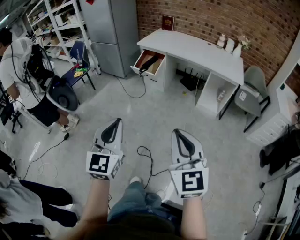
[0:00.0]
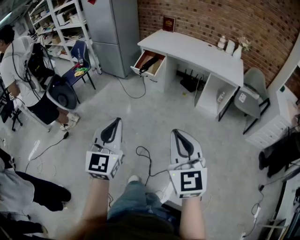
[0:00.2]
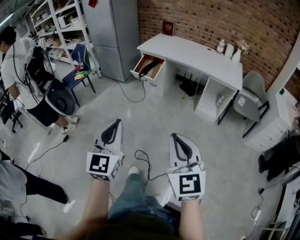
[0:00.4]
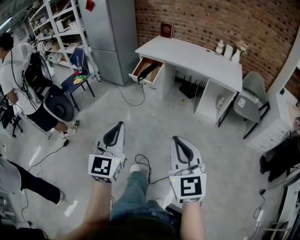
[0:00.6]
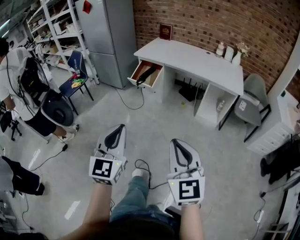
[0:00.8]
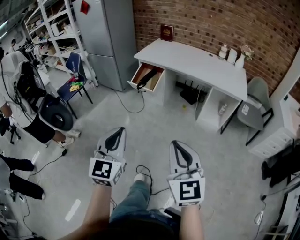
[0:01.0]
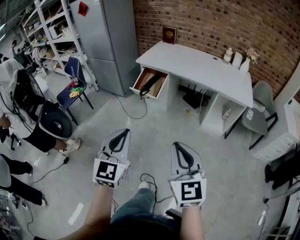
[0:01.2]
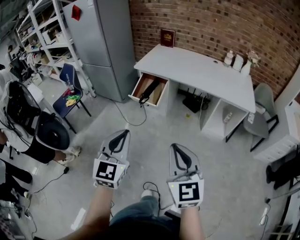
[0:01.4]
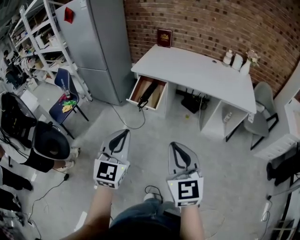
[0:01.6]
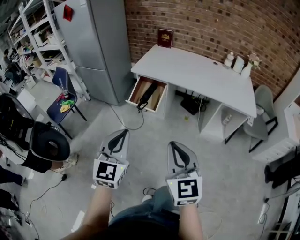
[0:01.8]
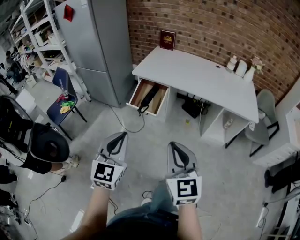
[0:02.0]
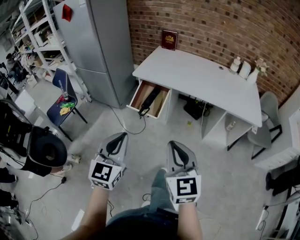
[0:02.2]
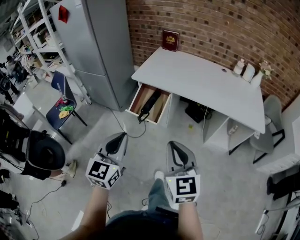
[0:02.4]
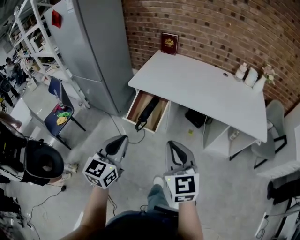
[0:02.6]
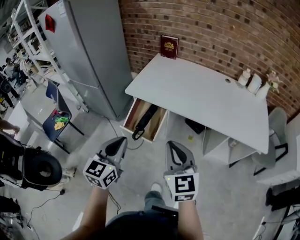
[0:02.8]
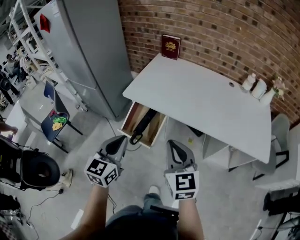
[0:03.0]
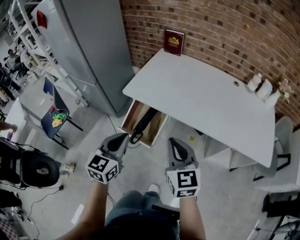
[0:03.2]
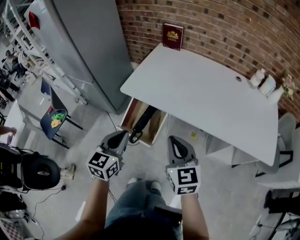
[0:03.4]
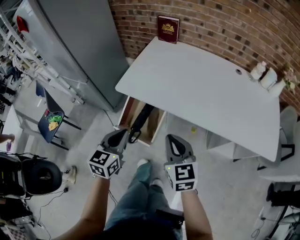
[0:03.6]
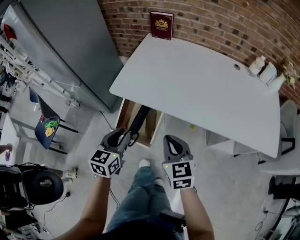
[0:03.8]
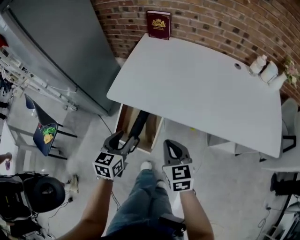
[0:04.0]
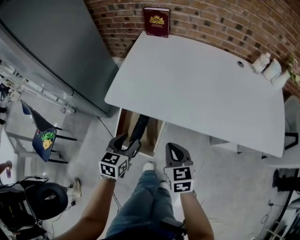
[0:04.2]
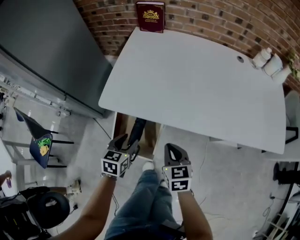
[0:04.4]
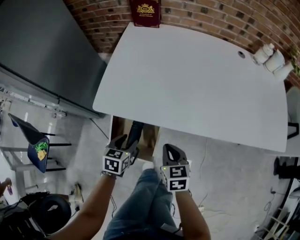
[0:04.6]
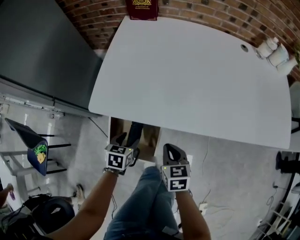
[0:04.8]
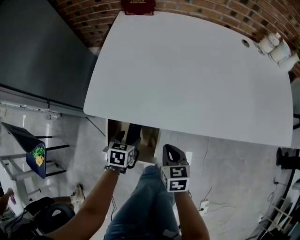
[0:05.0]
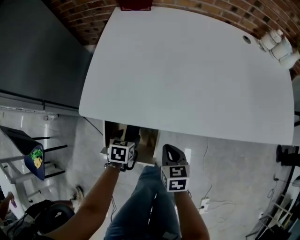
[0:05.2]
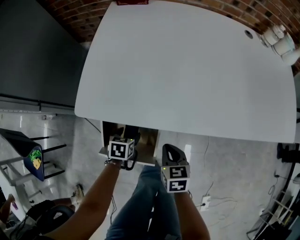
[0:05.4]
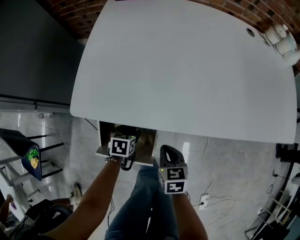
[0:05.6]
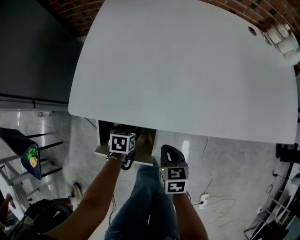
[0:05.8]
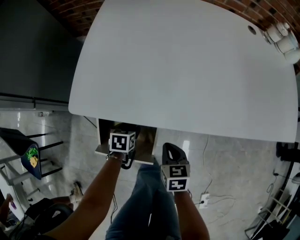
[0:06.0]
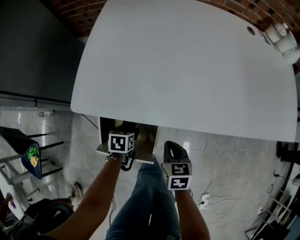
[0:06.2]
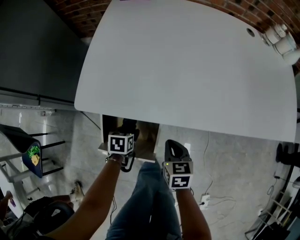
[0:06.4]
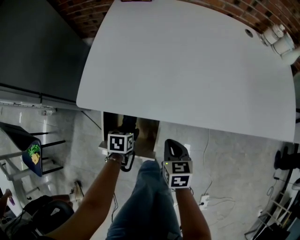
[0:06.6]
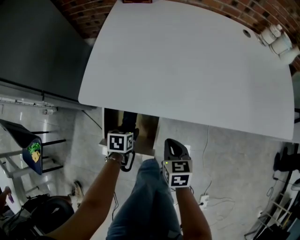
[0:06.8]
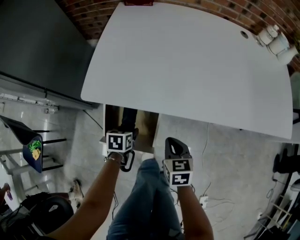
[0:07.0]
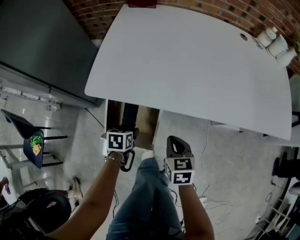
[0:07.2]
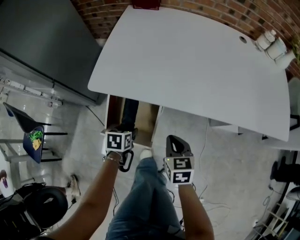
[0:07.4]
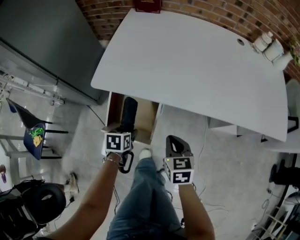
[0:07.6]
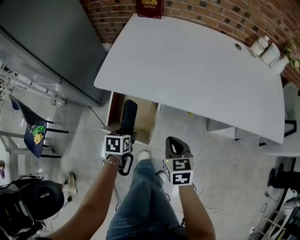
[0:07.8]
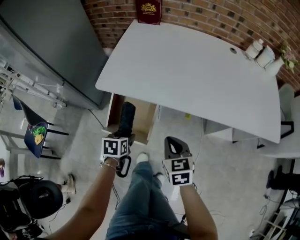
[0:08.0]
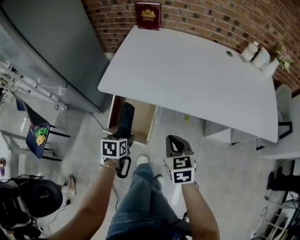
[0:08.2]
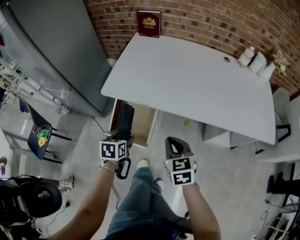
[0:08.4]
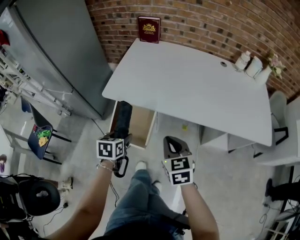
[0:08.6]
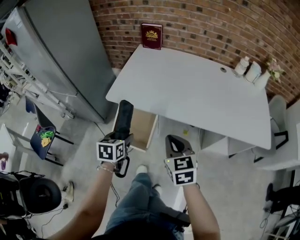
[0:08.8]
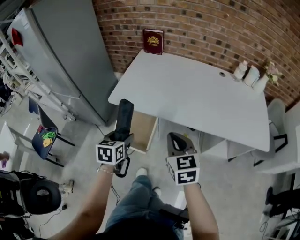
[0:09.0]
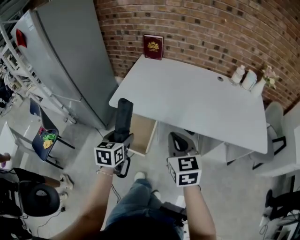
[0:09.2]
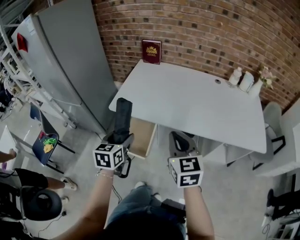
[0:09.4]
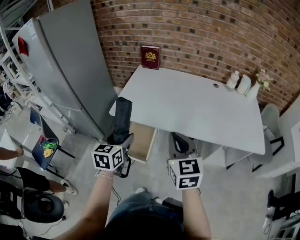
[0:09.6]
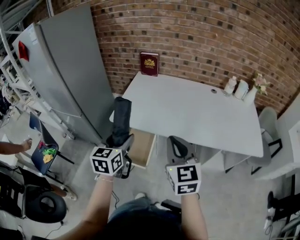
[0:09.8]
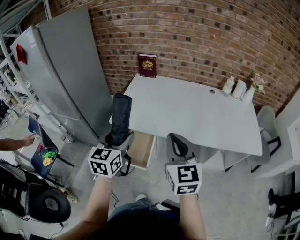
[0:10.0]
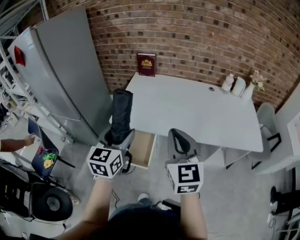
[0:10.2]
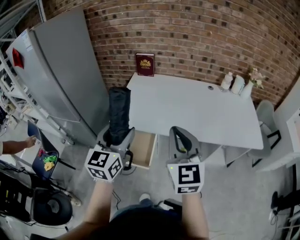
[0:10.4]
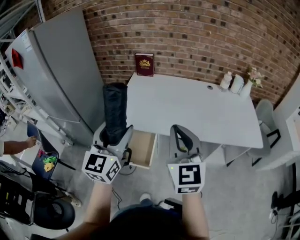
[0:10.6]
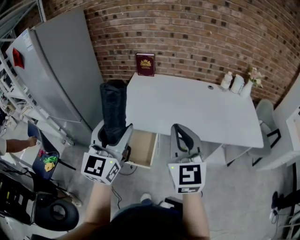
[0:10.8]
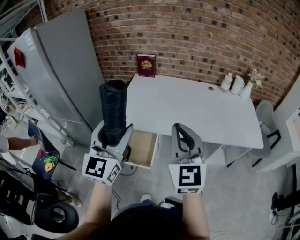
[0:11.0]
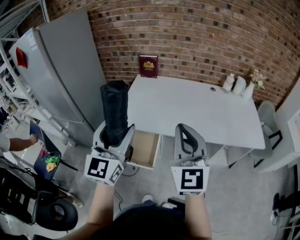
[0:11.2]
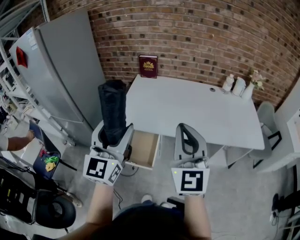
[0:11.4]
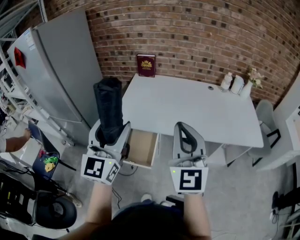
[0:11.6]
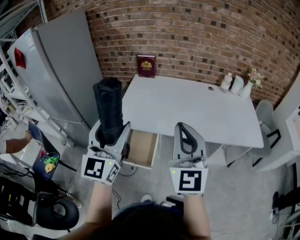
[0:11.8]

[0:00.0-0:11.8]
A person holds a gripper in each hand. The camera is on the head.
0:00.0 to 0:01.4: The two grippers go roughly 30 cm forward.
0:01.4 to 0:03.0: The two grippers travel together, forward, about 50 cm.
0:03.0 to 0:04.4: Both grippers travel together downward and forward, some 35 cm. The left gripper swivels some 30 degrees, and opens its fingers, while the right gripper rotates about 30 degrees.
0:04.4 to 0:06.0: Both grippers move downward, roughly 20 cm. The left gripper turns by approximately 30 degrees.
0:06.0 to 0:07.4: The left gripper travels upward and backward by some 15 cm, while the right gripper shifts roughly 10 cm upward.
0:07.4 to 0:08.8: Both grippers move upward, about 20 cm. The right gripper rotates roughly 20 degrees. Meanwhile the left gripper changes its angle by some 20 degrees.
0:08.8 to 0:10.4: The two grippers go roughly 25 cm upward. The right gripper changes its angle by roughly 30 degrees, while the left gripper angles its fingers upward, by about 40 degrees.
0:10.4 to 0:11.8: The left gripper shifts roughly 5 cm upward.

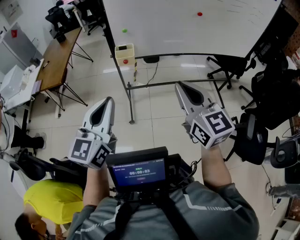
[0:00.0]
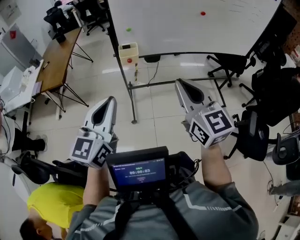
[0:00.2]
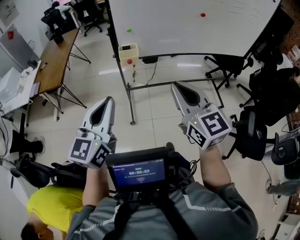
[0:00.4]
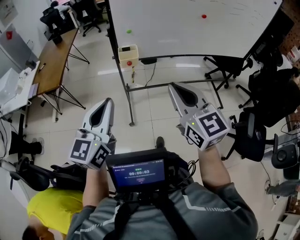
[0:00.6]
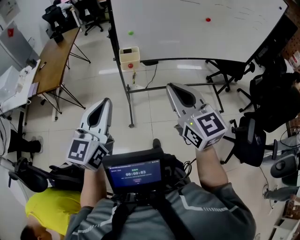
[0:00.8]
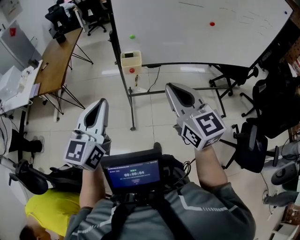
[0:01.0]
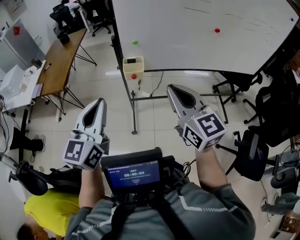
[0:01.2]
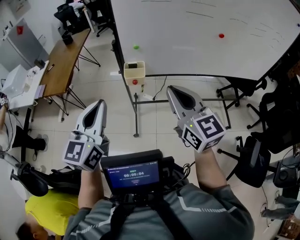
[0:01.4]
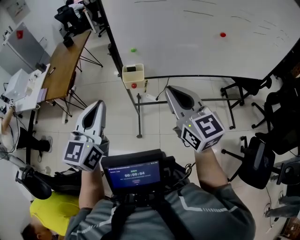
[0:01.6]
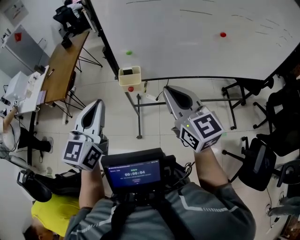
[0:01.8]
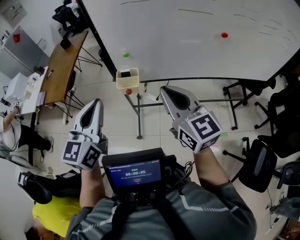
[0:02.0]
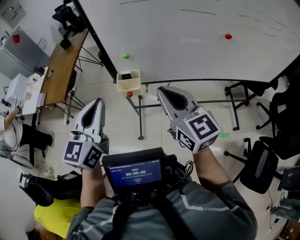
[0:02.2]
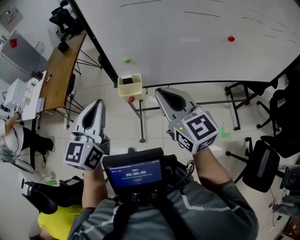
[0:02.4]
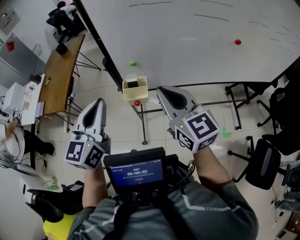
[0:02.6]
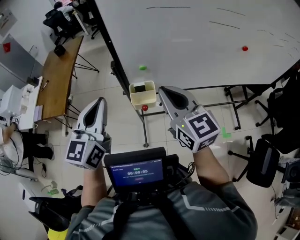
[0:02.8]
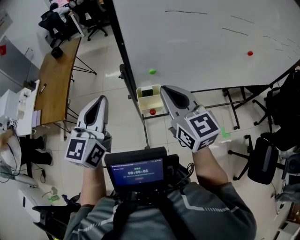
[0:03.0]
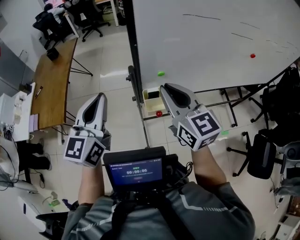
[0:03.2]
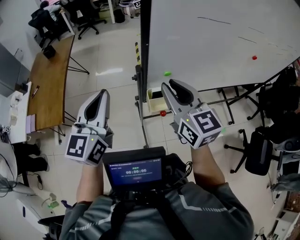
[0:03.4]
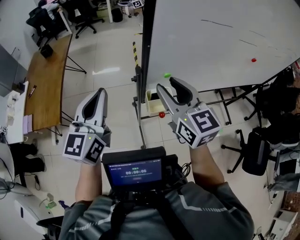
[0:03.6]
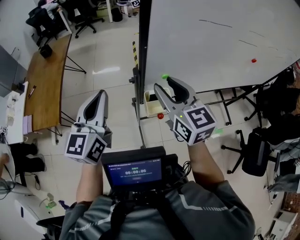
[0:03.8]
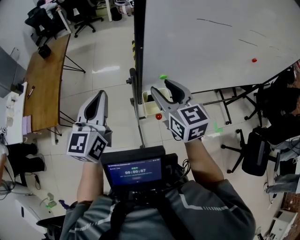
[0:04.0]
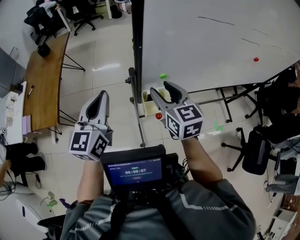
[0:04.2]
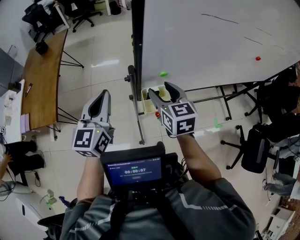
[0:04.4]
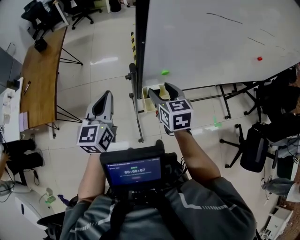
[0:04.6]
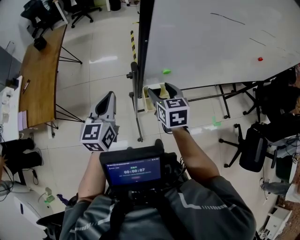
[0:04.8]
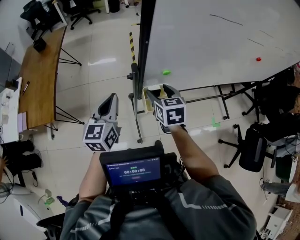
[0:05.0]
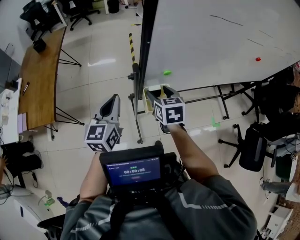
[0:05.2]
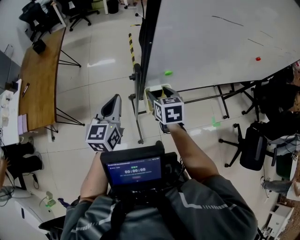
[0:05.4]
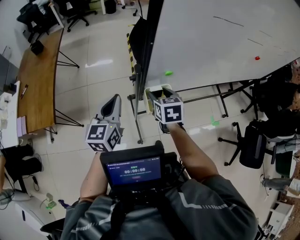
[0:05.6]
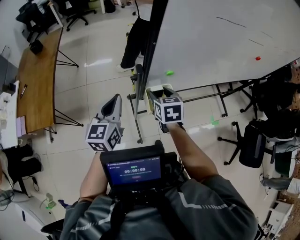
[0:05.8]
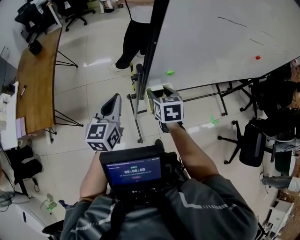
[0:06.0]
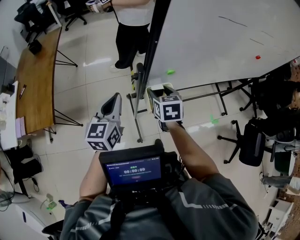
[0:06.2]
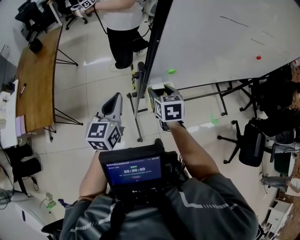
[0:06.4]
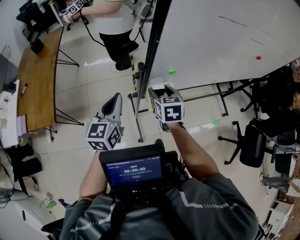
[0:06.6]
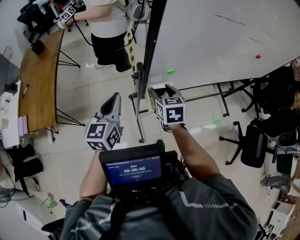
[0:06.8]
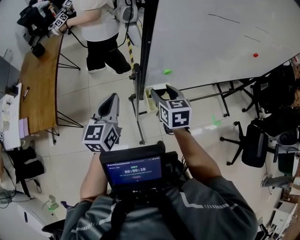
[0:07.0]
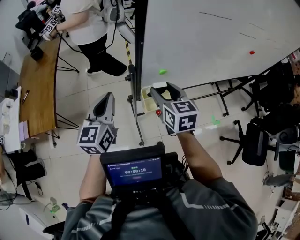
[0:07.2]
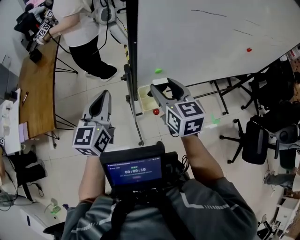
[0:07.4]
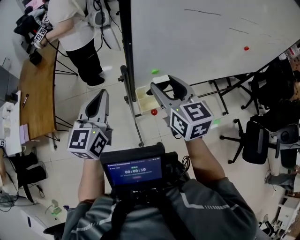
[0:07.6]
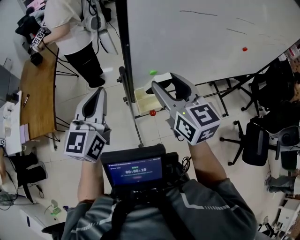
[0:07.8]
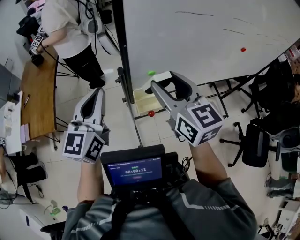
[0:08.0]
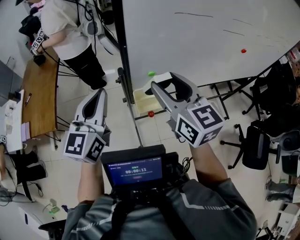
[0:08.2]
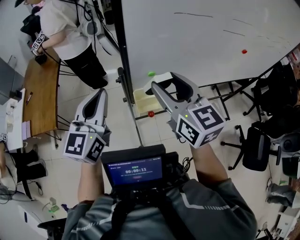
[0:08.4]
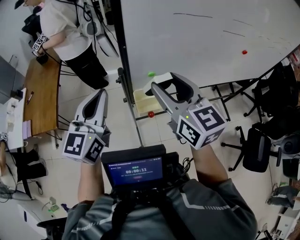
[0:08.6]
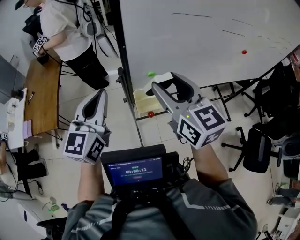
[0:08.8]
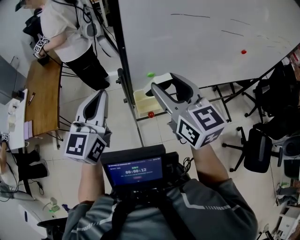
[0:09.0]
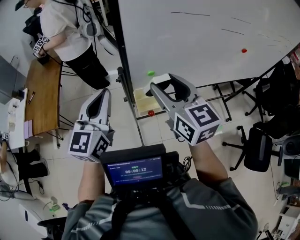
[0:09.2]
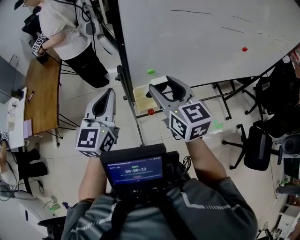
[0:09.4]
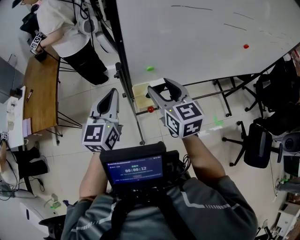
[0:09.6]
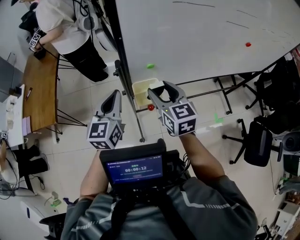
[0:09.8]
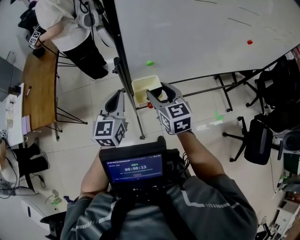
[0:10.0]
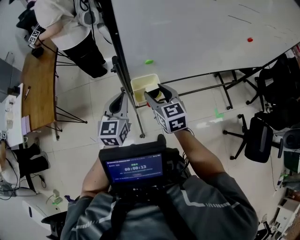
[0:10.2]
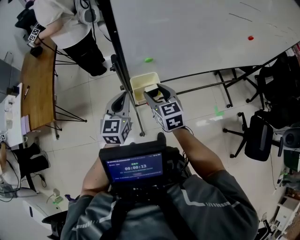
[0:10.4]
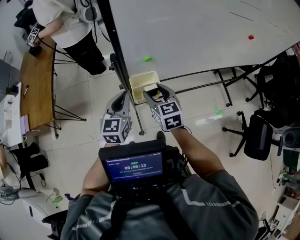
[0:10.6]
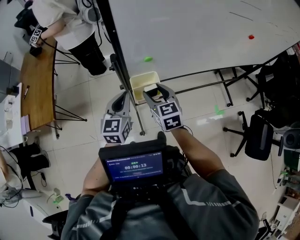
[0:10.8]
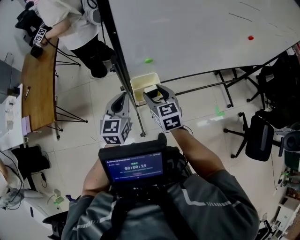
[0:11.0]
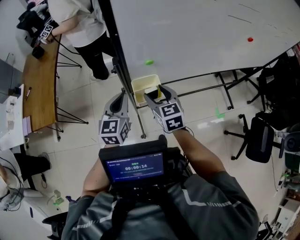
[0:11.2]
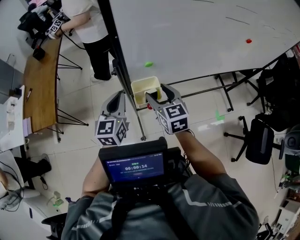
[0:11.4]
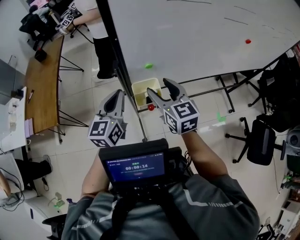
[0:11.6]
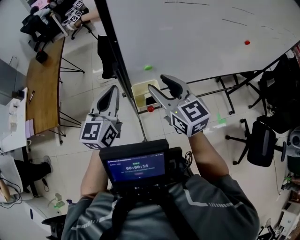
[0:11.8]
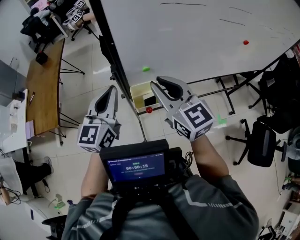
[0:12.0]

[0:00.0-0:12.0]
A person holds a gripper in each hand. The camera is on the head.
0:00.0 to 0:01.6: Both grippers travel together forward, roughly 25 cm.
0:01.6 to 0:03.0: The left gripper shifts approximately 25 cm forward; the right gripper shifts about 25 cm forward and to the left.
0:03.0 to 0:04.4: The left gripper shifts approximately 15 cm forward, downward and to the left. Meanwhile the right gripper is displaced downward, forward and to the left by approximately 20 cm, changes its angle by approximately 20 degrees, and opens up.
0:04.4 to 0:06.0: The grippers both shift downward by some 10 cm. The right gripper swivels about 20 degrees.
0:06.0 to 0:07.6: The left gripper is displaced upward by approximately 10 cm, while the right gripper heads upward, covering roughly 20 cm, and rotates about 30 degrees.
0:07.6 to 0:09.0: The two grippers go about 5 cm upward.
0:09.0 to 0:10.4: Both grippers travel together downward, about 25 cm. The right gripper rotates about 20 degrees.
0:10.4 to 0:12.0: Both grippers travel together upward, about 20 cm. The right gripper swivels roughly 20 degrees, and closes.
